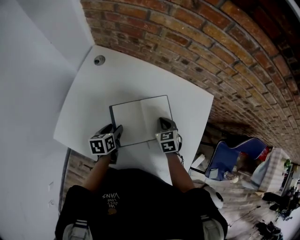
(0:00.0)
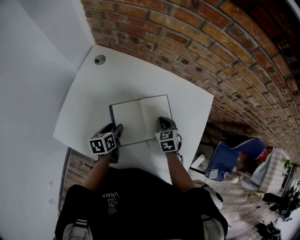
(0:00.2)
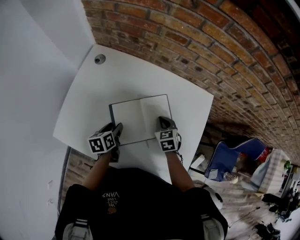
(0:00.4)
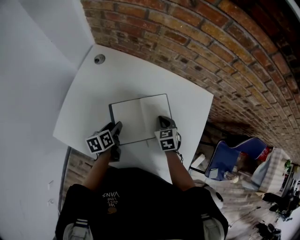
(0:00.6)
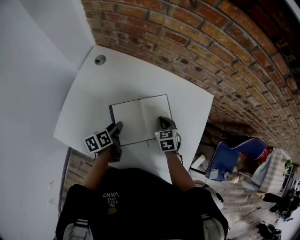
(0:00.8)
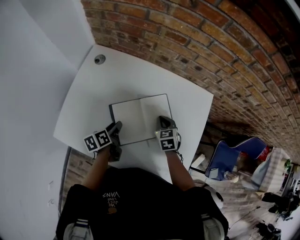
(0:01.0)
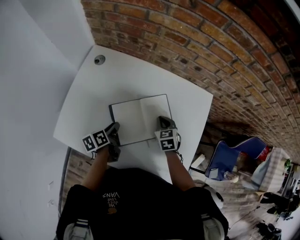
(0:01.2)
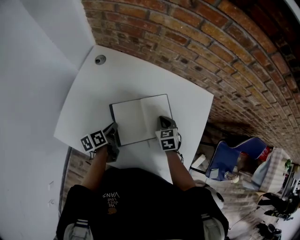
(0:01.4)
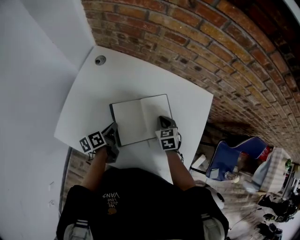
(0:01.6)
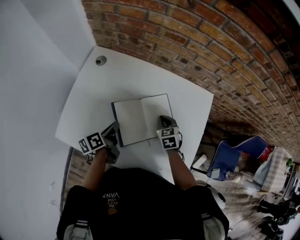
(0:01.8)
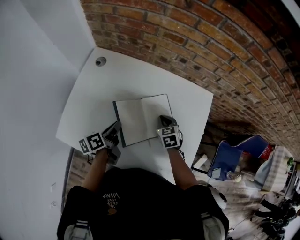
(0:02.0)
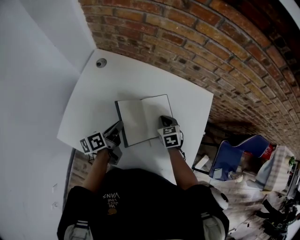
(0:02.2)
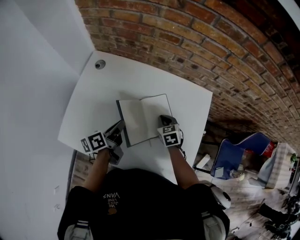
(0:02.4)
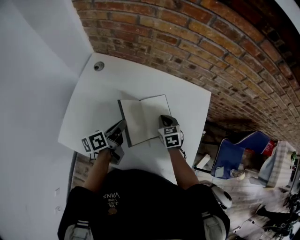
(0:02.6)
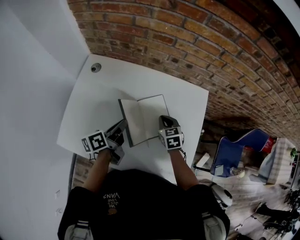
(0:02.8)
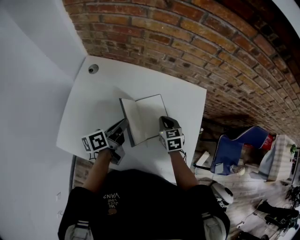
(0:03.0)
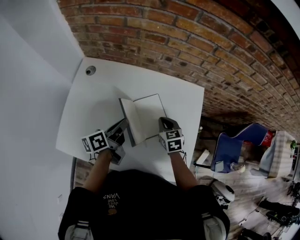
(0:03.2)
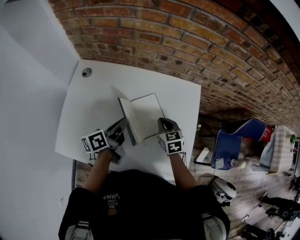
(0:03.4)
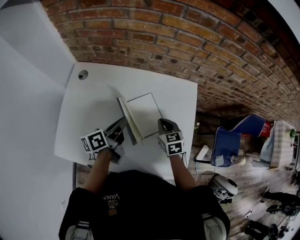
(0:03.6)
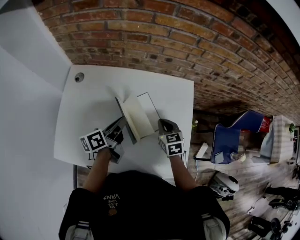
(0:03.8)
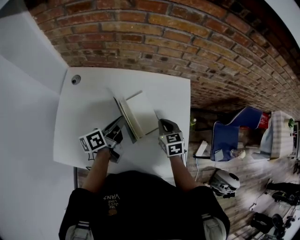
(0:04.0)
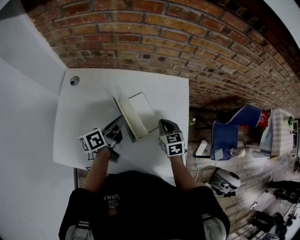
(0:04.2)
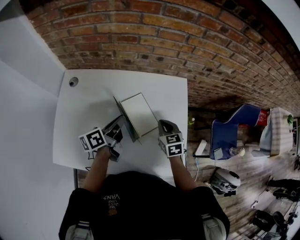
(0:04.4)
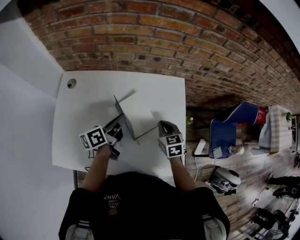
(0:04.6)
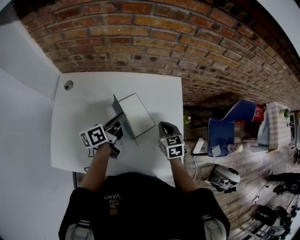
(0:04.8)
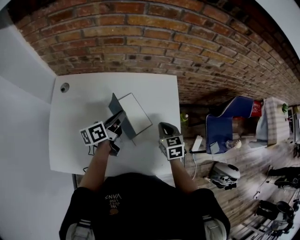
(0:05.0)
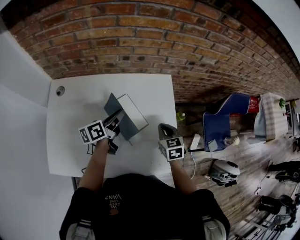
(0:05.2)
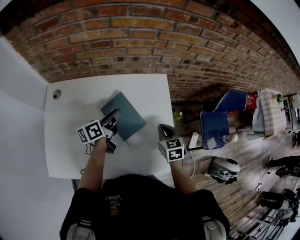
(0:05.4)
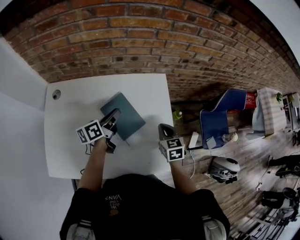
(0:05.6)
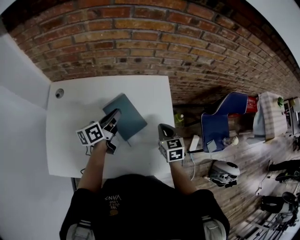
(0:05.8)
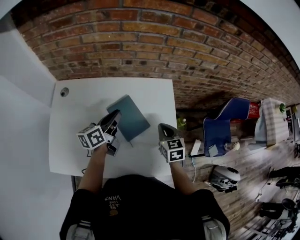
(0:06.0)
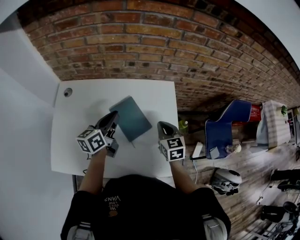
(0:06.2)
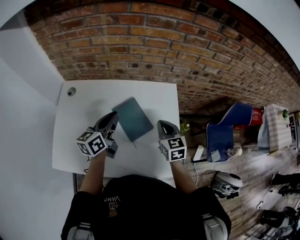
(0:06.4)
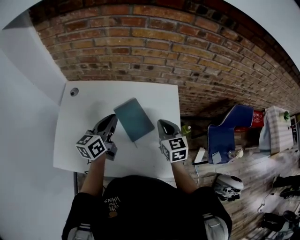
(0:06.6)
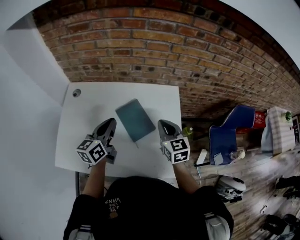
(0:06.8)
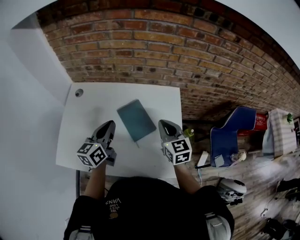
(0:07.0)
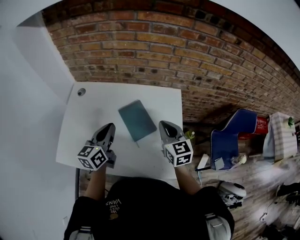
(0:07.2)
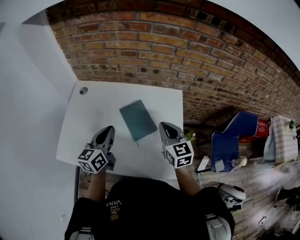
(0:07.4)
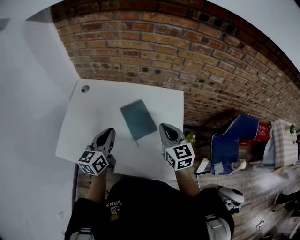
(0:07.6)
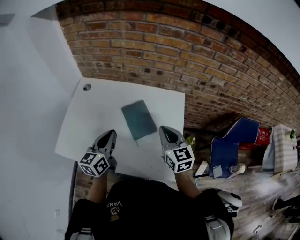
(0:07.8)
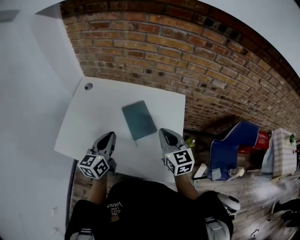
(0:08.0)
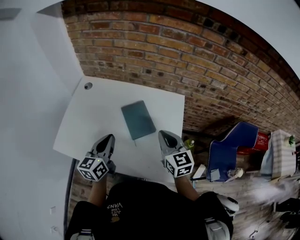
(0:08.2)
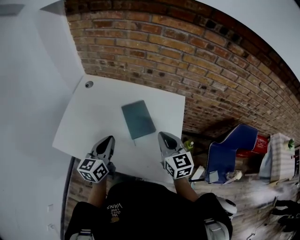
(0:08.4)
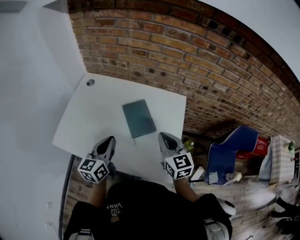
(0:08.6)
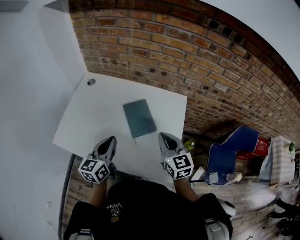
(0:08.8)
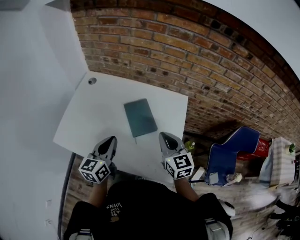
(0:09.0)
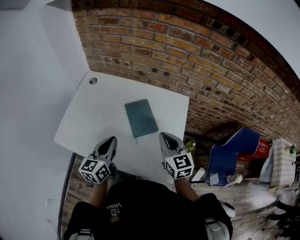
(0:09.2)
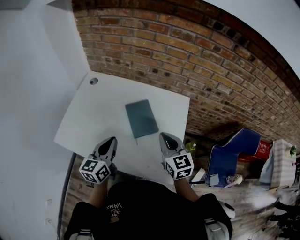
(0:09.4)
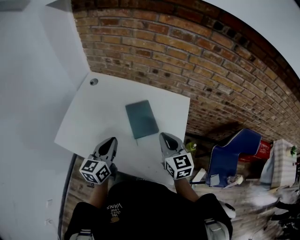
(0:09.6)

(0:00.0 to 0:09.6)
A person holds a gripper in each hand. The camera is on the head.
0:00.0 - 0:01.6: The left gripper turns by approximately 30 degrees, and closes.
0:01.6 - 0:03.2: The right gripper ends up approximately 5 cm from where it was, while the left gripper heads upward and to the right, covering about 15 cm, and rotates approximately 20 degrees.
0:03.2 - 0:04.8: Both grippers move to the right, some 10 cm.
0:04.8 - 0:06.4: The grippers both shift upward by approximately 5 cm. The left gripper turns by approximately 30 degrees.
0:06.4 - 0:08.0: The right gripper goes approximately 10 cm upward and backward; the left gripper is displaced backward by some 15 cm.
0:08.0 - 0:09.6: There are only small adjustments of the grippers.

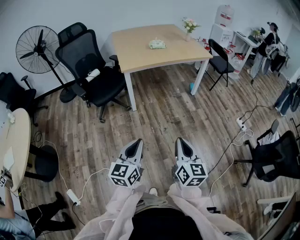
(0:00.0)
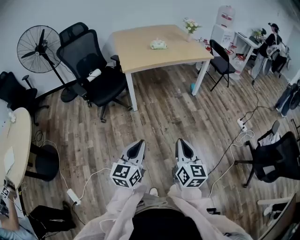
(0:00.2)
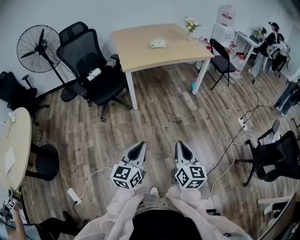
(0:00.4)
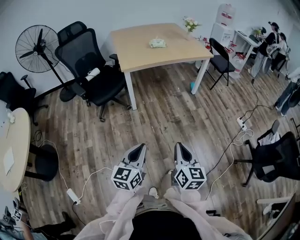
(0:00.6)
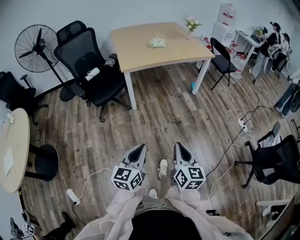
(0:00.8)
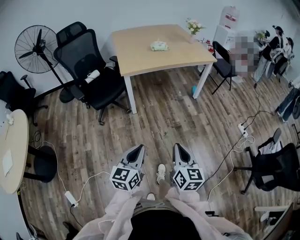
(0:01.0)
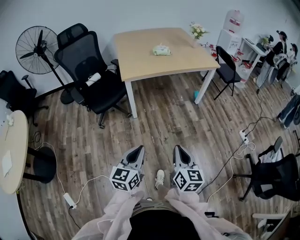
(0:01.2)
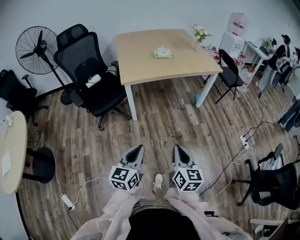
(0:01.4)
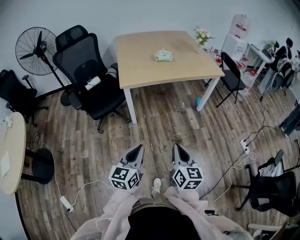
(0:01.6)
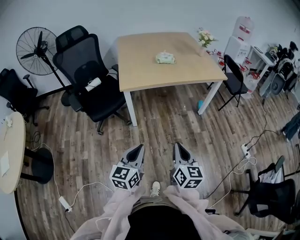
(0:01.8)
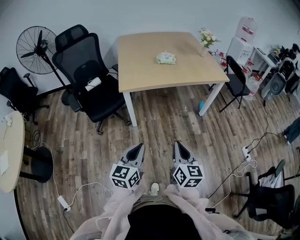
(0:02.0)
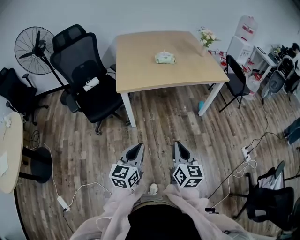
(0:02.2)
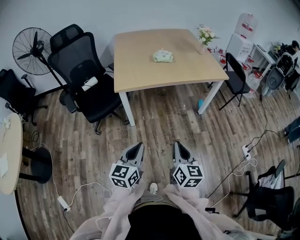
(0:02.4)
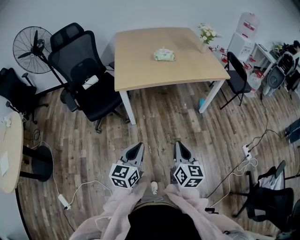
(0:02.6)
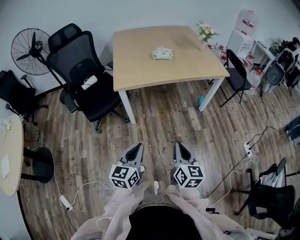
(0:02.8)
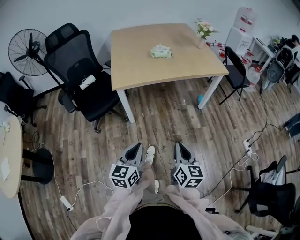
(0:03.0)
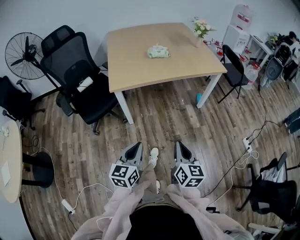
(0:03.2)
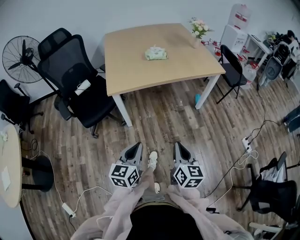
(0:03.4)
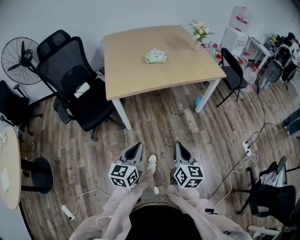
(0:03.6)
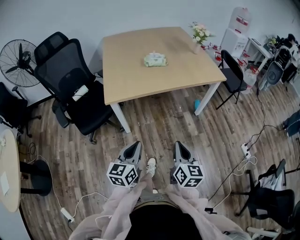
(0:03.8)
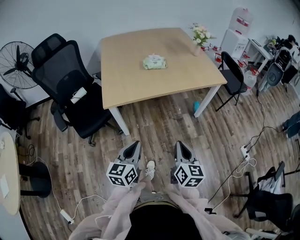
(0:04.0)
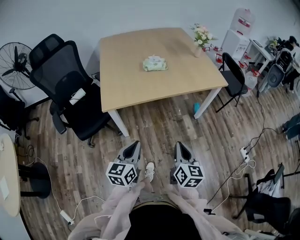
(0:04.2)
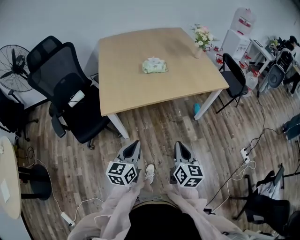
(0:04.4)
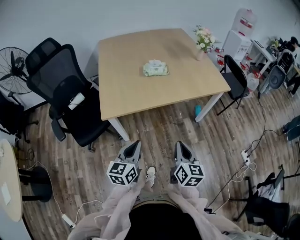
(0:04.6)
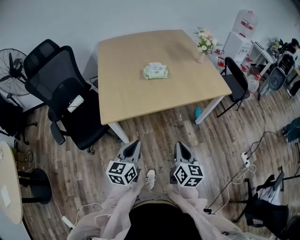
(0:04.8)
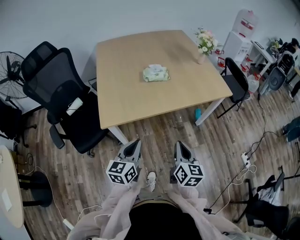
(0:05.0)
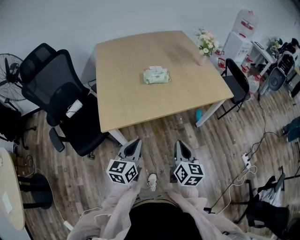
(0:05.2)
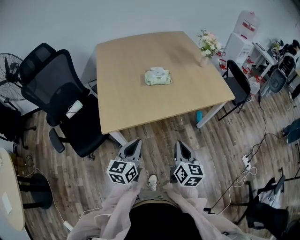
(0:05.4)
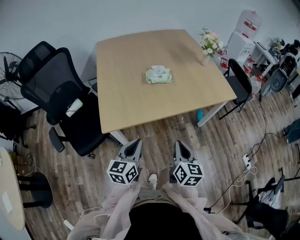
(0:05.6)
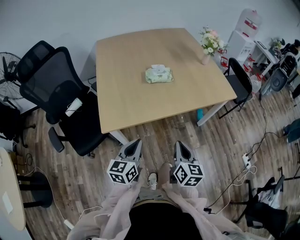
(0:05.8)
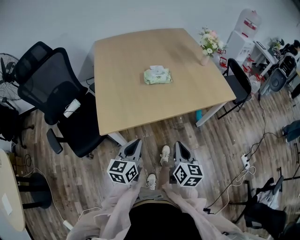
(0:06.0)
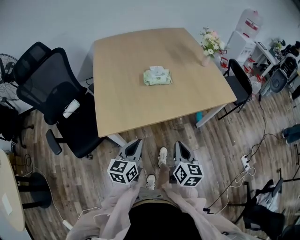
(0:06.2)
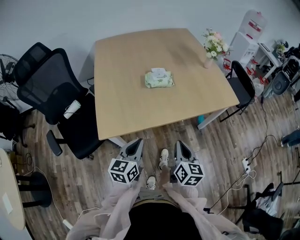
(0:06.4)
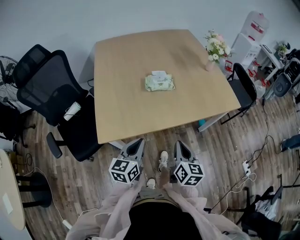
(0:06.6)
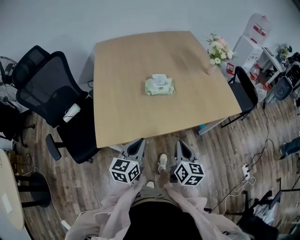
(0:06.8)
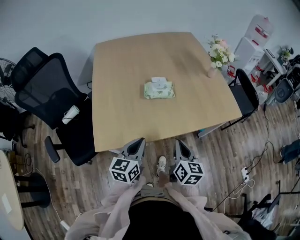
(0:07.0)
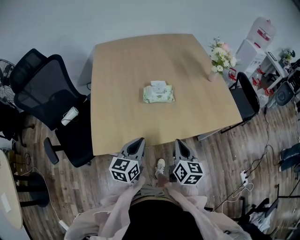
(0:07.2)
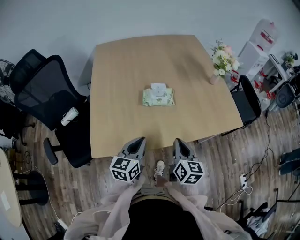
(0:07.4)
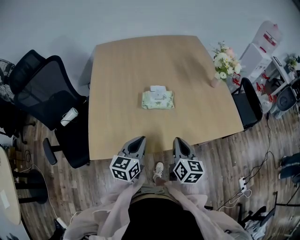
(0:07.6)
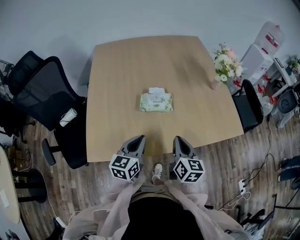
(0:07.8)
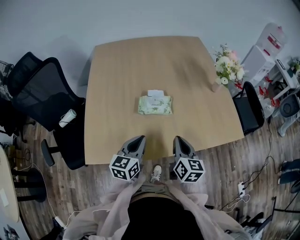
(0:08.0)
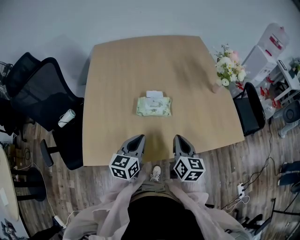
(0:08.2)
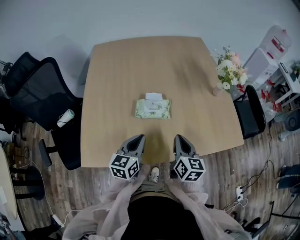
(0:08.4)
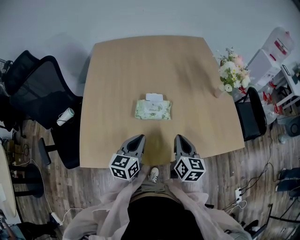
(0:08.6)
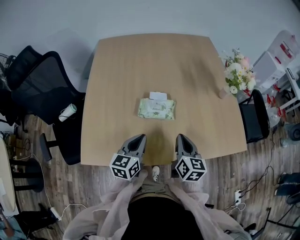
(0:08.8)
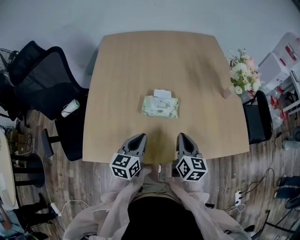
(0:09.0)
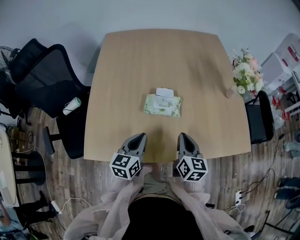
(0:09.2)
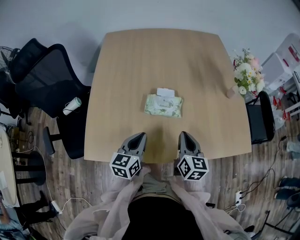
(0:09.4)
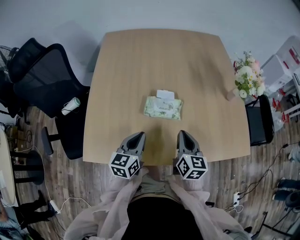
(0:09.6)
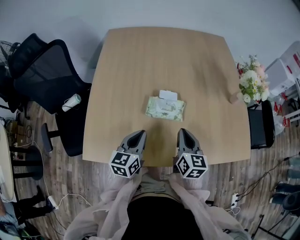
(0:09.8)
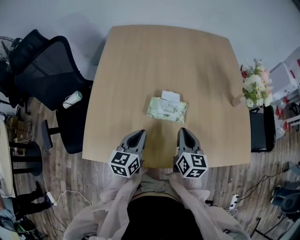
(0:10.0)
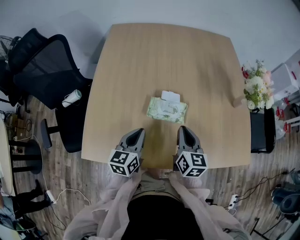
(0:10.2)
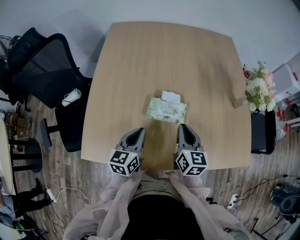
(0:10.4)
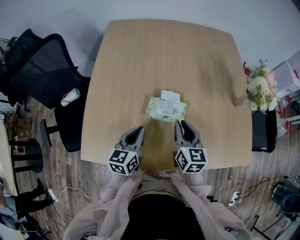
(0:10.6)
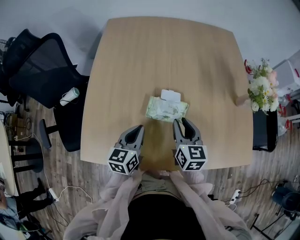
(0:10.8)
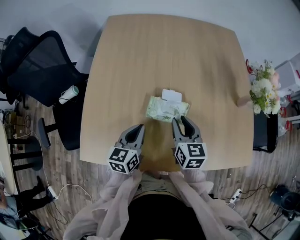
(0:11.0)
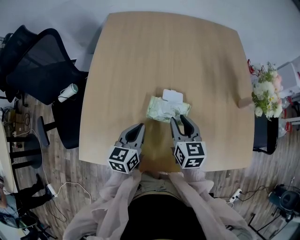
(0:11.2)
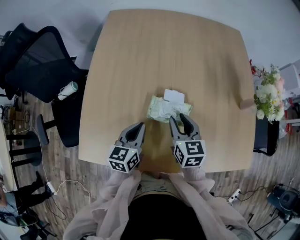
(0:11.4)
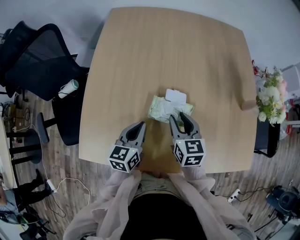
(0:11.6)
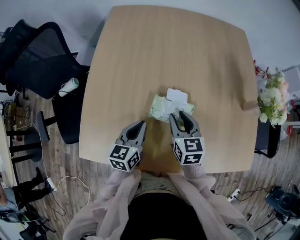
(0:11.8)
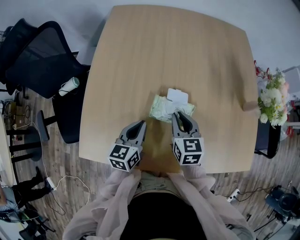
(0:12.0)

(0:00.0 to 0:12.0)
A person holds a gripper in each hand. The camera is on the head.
0:00.0 - 0:01.6: The two grippers go approximately 20 cm forward.
0:01.6 - 0:03.0: Both grippers travel together forward, some 10 cm.
0:03.0 - 0:04.4: The grippers both shift forward by roughly 20 cm.
0:04.4 - 0:06.0: Both grippers move forward, approximately 15 cm.
0:06.0 - 0:07.6: Both grippers travel together forward, approximately 20 cm.
0:07.6 - 0:09.0: The grippers both shift forward by some 10 cm.
0:09.0 - 0:10.4: The left gripper heads forward, covering about 5 cm. The right gripper is displaced forward by about 10 cm.
0:10.4 - 0:12.0: The right gripper shifts about 5 cm forward. The left gripper changes place by roughly 5 cm.

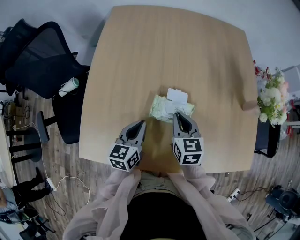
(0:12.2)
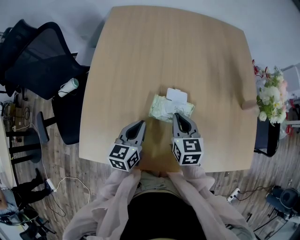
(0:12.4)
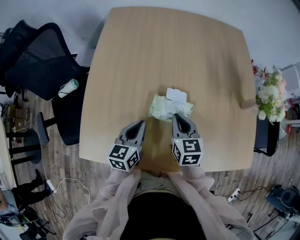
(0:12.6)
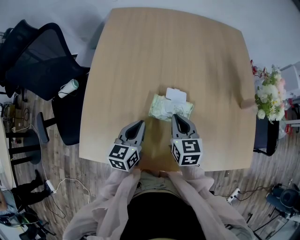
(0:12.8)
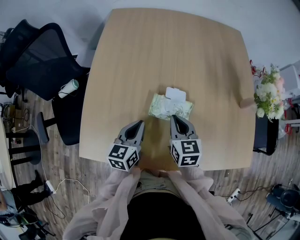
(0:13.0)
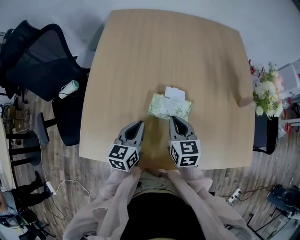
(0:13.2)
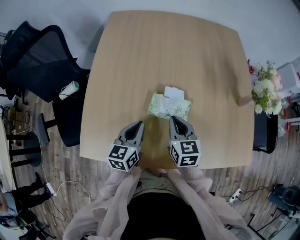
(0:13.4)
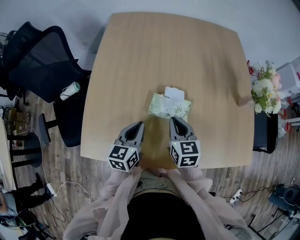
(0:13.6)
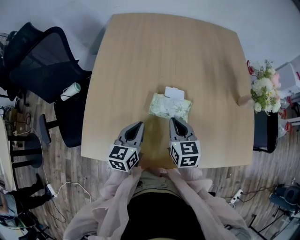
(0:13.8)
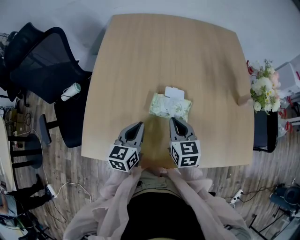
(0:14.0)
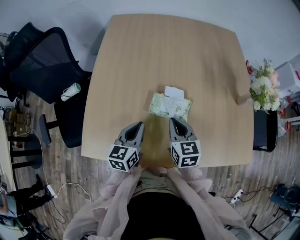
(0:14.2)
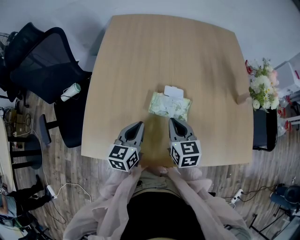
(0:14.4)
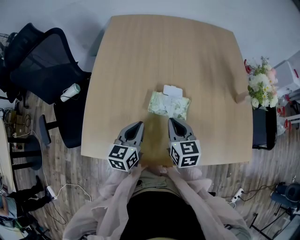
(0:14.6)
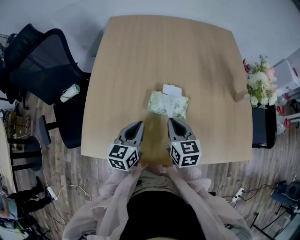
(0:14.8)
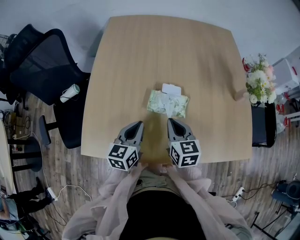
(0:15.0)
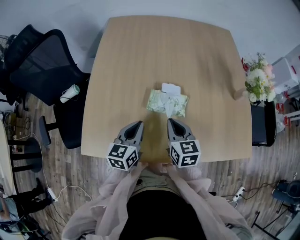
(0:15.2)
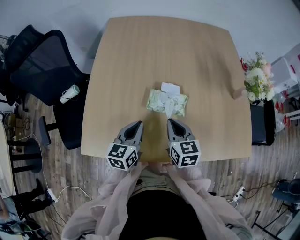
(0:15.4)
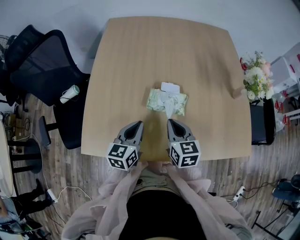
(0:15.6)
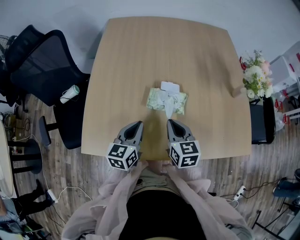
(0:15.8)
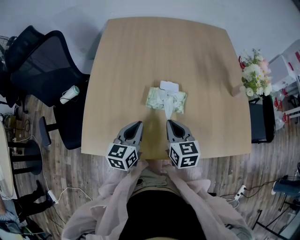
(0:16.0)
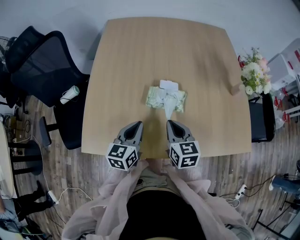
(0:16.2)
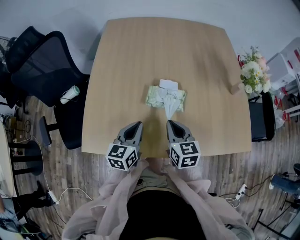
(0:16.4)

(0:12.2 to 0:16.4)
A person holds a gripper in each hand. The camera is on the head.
0:12.2 - 0:13.6: The grippers move only a little.
0:13.6 - 0:15.0: The grippers make only small movements.
0:15.0 - 0:16.4: There are only small adjustments of the grippers.
